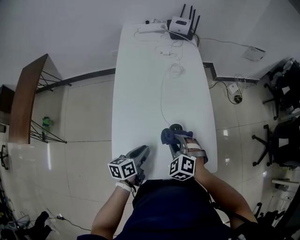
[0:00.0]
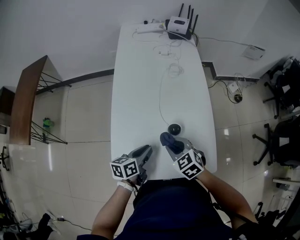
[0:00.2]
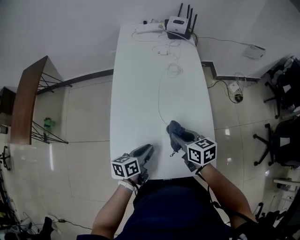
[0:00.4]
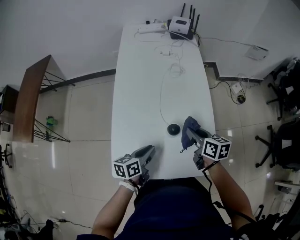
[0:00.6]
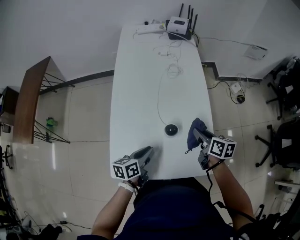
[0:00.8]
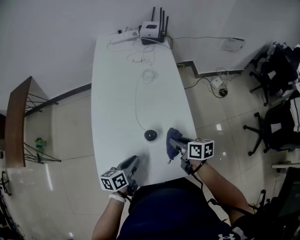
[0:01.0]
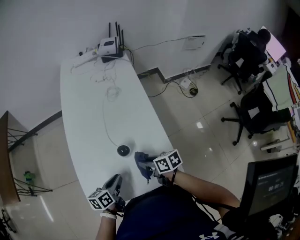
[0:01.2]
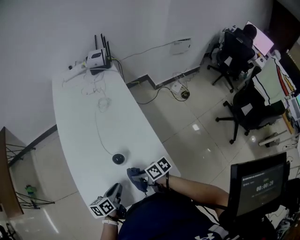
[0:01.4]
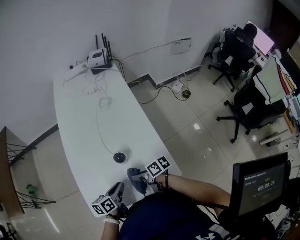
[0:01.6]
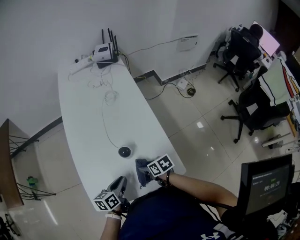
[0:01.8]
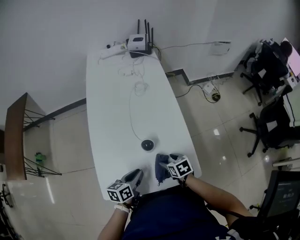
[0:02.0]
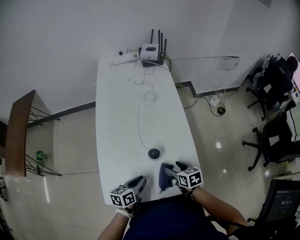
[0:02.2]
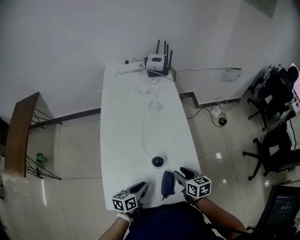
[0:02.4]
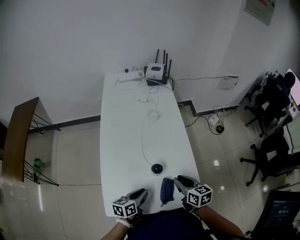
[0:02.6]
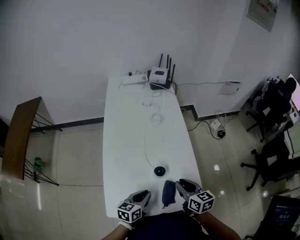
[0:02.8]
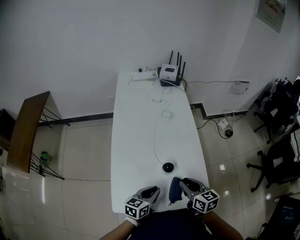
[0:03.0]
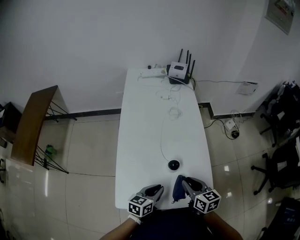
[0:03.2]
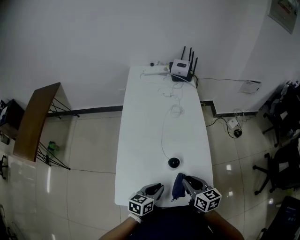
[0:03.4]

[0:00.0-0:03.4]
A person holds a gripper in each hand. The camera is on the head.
0.0 to 1.6 s: The left gripper heads to the right, covering some 5 cm, while the right gripper shifts approximately 10 cm downward and backward, reaches about 15 cm to the right, then returns, and twists roughly 90 degrees clockwise, seen from behind.
1.6 to 3.4 s: The right gripper heads upward, covering roughly 10 cm, rotates about 50 degrees, and opens, then closes again; the left gripper heads upward, covering roughly 5 cm.

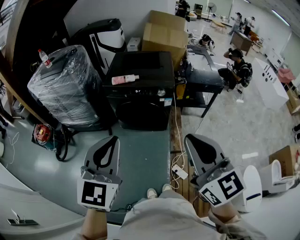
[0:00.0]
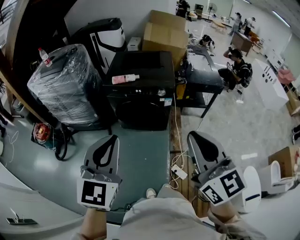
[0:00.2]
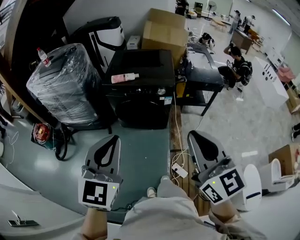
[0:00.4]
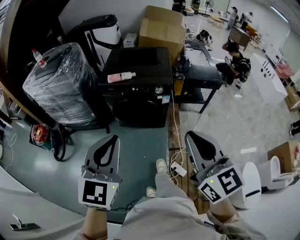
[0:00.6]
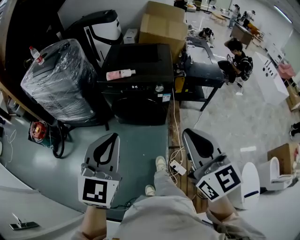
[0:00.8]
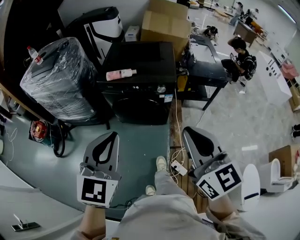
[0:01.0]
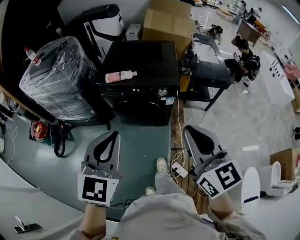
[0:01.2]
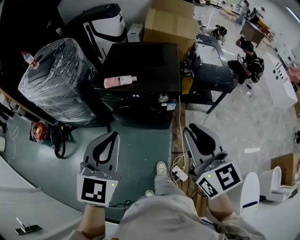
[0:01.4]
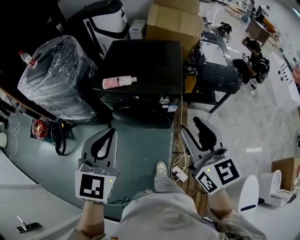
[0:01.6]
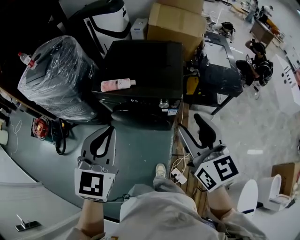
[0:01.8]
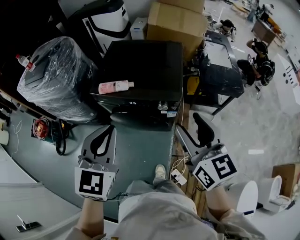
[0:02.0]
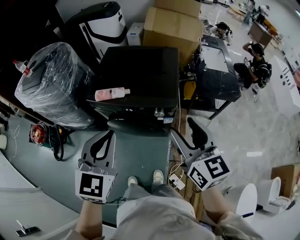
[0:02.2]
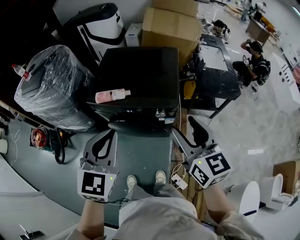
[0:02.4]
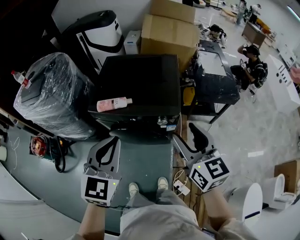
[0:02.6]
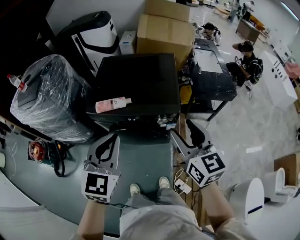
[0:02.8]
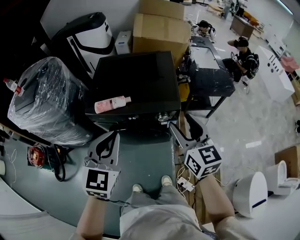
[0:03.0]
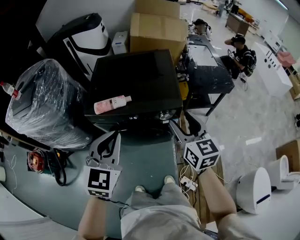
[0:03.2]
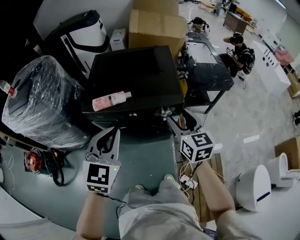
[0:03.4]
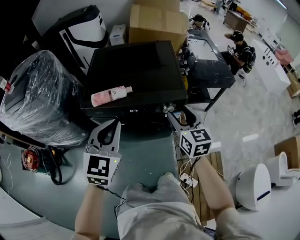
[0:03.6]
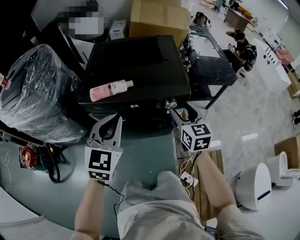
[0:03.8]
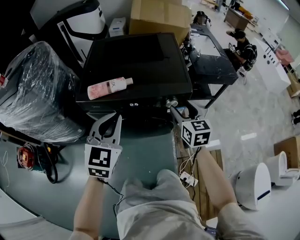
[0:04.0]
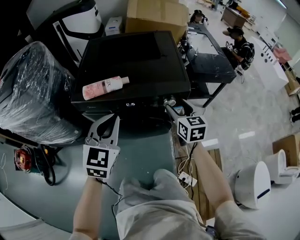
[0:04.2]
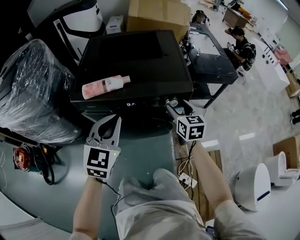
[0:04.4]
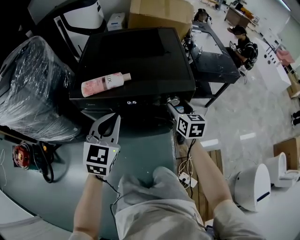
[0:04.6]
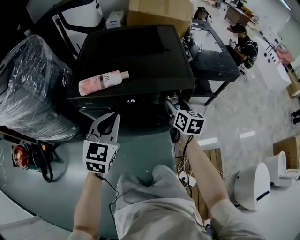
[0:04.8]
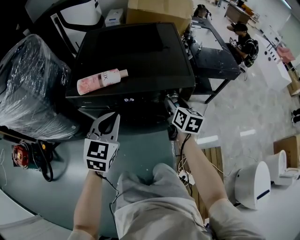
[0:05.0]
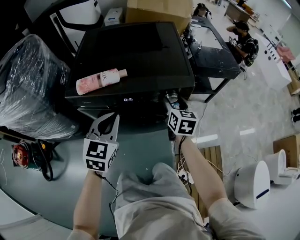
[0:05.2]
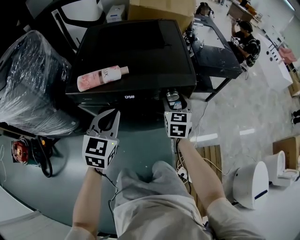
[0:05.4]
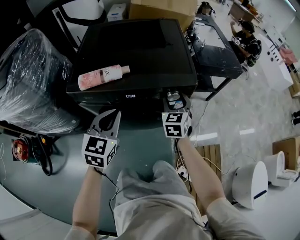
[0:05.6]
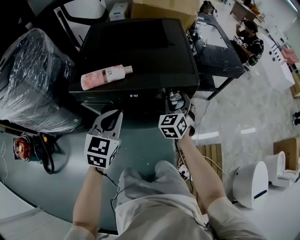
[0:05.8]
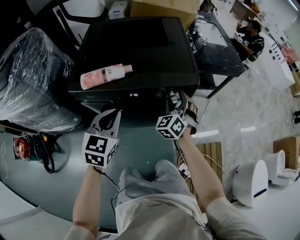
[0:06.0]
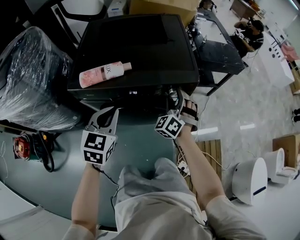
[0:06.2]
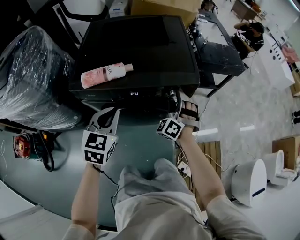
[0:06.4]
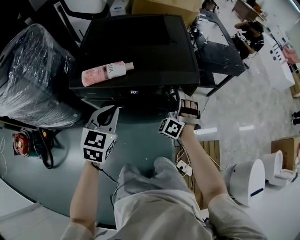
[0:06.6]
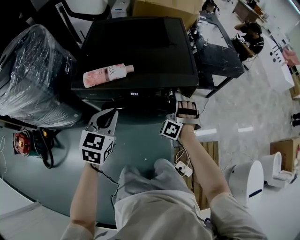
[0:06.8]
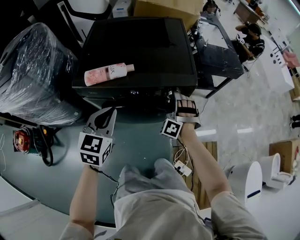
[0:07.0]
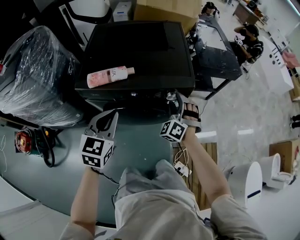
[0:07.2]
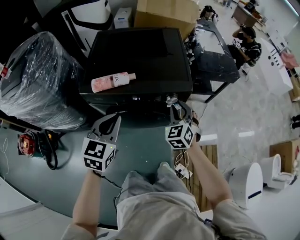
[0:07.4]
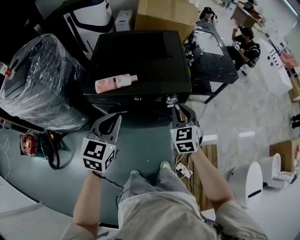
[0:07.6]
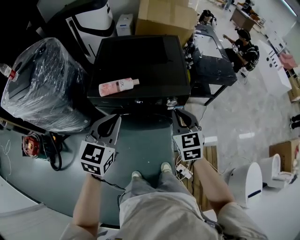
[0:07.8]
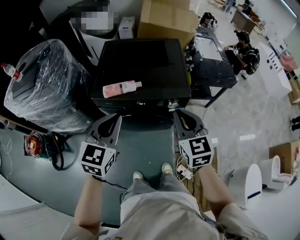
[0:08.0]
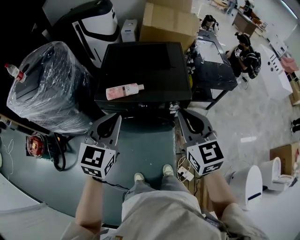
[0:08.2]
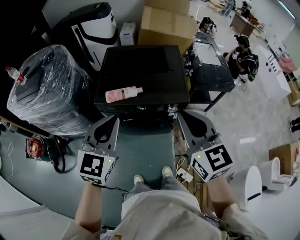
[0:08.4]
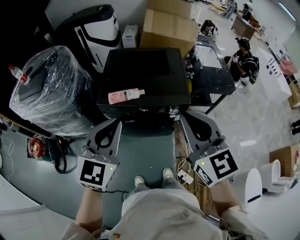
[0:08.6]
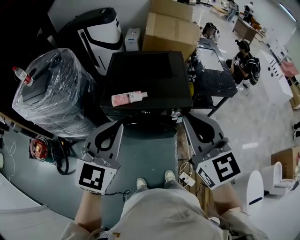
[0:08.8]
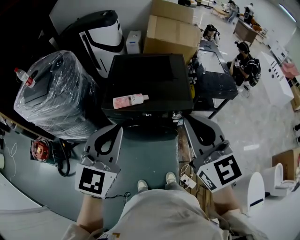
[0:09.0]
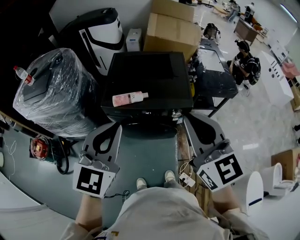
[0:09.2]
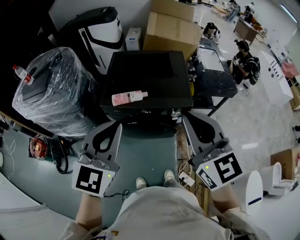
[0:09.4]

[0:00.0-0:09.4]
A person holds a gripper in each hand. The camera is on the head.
0.0 to 1.6 s: Both grippers travel together forward, roughly 25 cm. The right gripper opens.
1.6 to 3.2 s: Both grippers move forward and downward, approximately 20 cm.
3.2 to 4.8 s: The grippers both shift downward and forward by about 25 cm. The right gripper rotates roughly 20 degrees.
4.8 to 6.2 s: The right gripper rotates around the line of its fingers by approximately 80 degrees, counterclockwise from behind.
6.2 to 7.8 s: Both grippers move upward and backward, approximately 20 cm. The right gripper rotates around the line of its fingers by approximately 40 degrees, clockwise from behind, and closes.
7.8 to 9.4 s: The grippers both shift upward by some 20 cm. The right gripper rotates about 20 degrees.

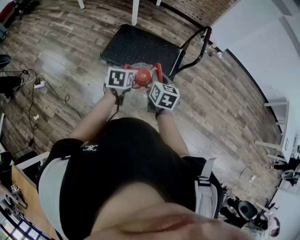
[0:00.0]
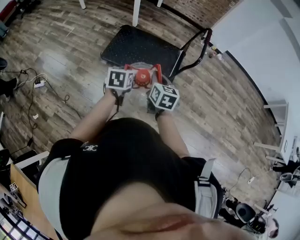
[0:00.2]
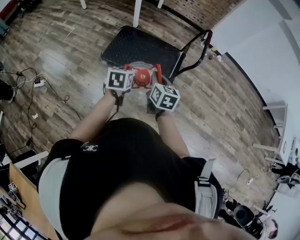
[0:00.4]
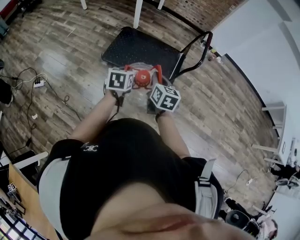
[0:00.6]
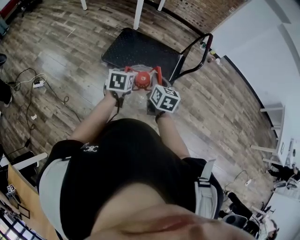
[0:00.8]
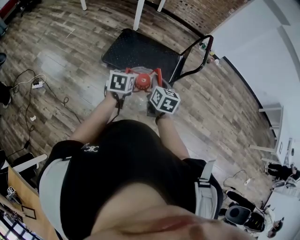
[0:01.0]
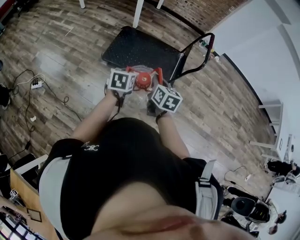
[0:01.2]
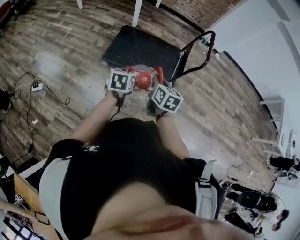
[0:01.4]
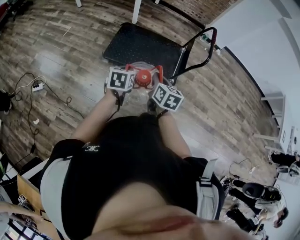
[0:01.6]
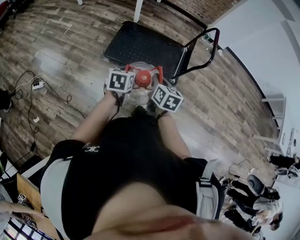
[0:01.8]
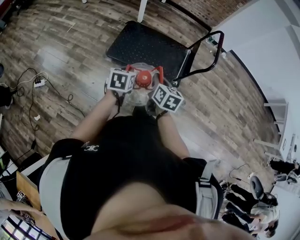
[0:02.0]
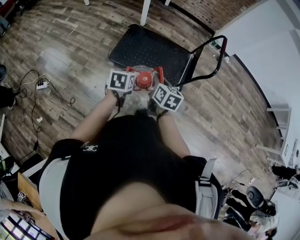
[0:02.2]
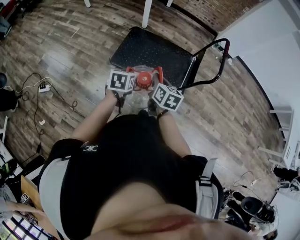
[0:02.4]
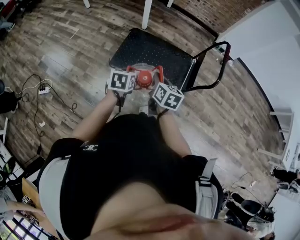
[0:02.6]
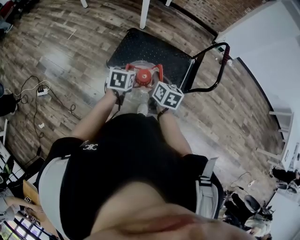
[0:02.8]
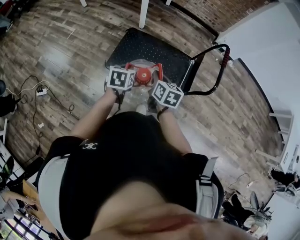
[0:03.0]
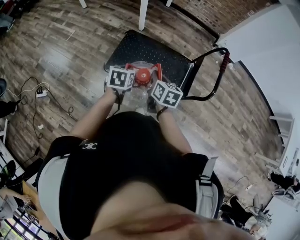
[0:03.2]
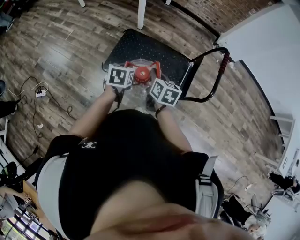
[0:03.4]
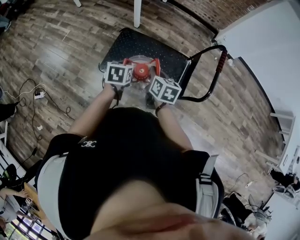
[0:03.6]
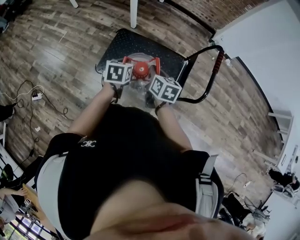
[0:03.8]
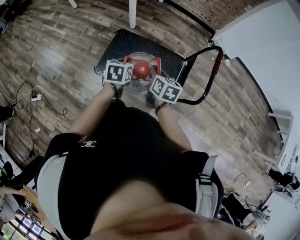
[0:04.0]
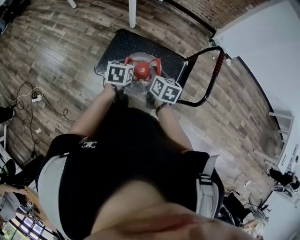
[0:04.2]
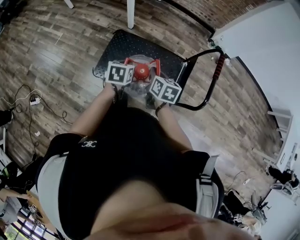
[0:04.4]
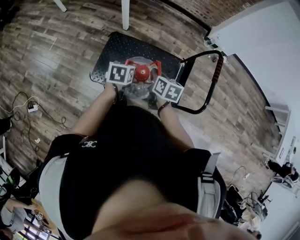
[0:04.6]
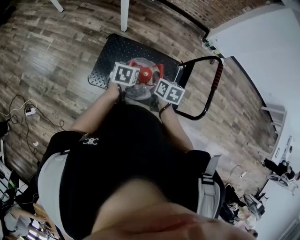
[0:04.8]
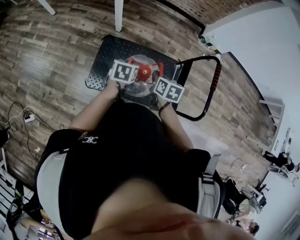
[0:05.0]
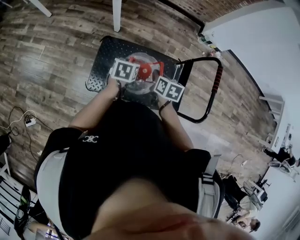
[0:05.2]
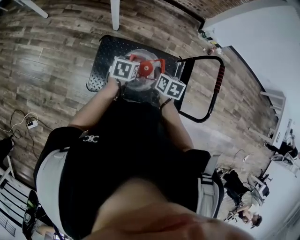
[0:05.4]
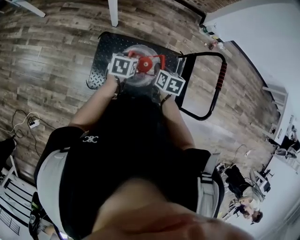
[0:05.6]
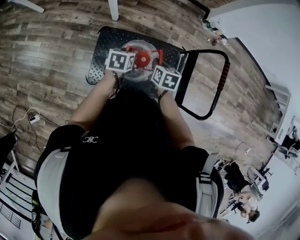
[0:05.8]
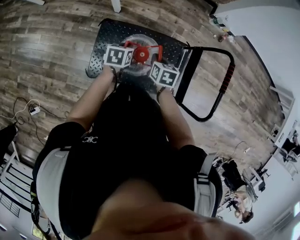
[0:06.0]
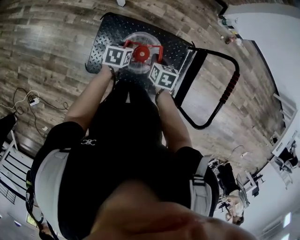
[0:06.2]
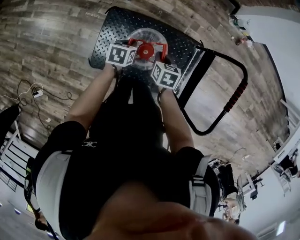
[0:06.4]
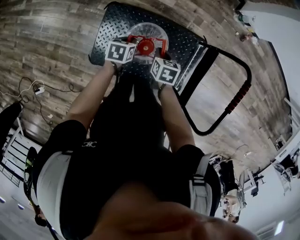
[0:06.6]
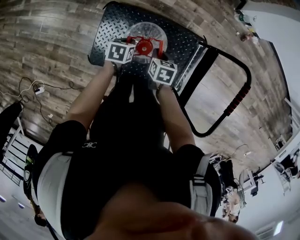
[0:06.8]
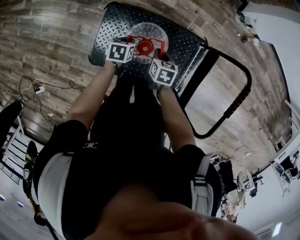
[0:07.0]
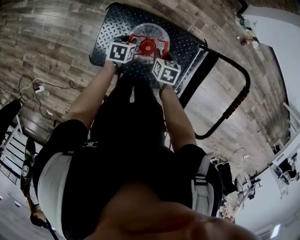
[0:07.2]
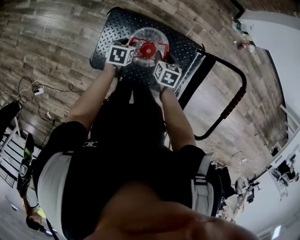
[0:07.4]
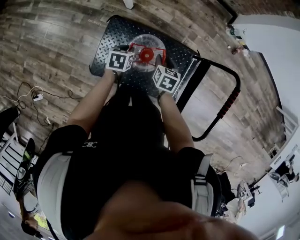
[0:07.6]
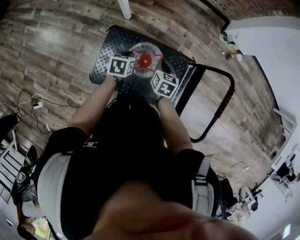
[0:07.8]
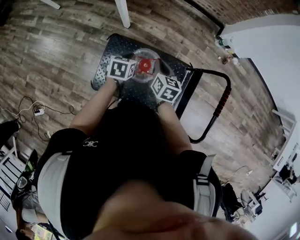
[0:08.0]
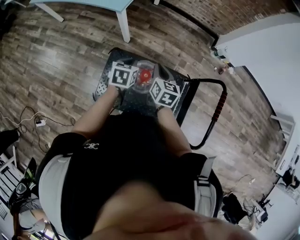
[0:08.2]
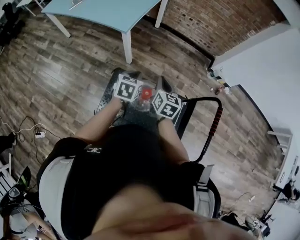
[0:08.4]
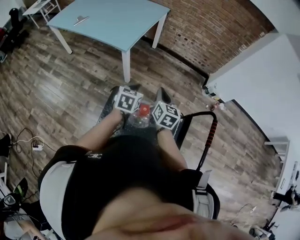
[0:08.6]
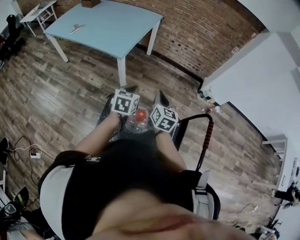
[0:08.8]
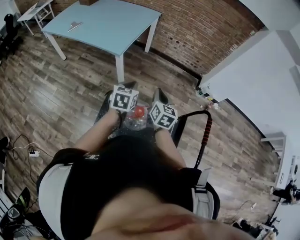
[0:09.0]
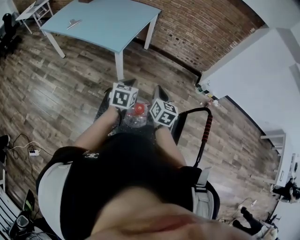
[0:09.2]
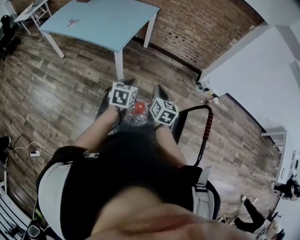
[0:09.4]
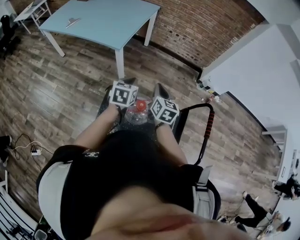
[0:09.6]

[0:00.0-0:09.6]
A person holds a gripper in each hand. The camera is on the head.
0.0 to 1.6 s: The two grippers go approximately 10 cm to the left.
1.6 to 3.2 s: The grippers both shift forward by roughly 25 cm.
3.2 to 4.8 s: Both grippers move forward, approximately 15 cm.
4.8 to 6.4 s: The left gripper goes some 20 cm forward and downward; the right gripper travels downward and forward by about 20 cm.
6.4 to 8.0 s: Both grippers travel together upward, approximately 10 cm. The right gripper turns by about 20 degrees, and opens, then closes once more; the left gripper opens, then closes once more.
8.0 to 9.6 s: The grippers both shift upward by about 15 cm. The left gripper swivels approximately 20 degrees.

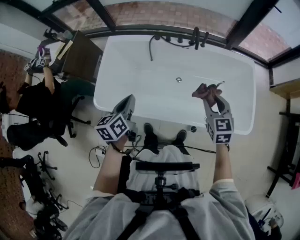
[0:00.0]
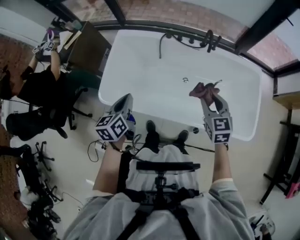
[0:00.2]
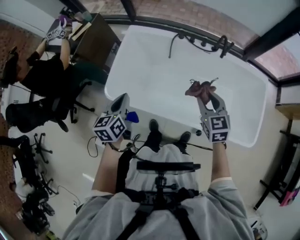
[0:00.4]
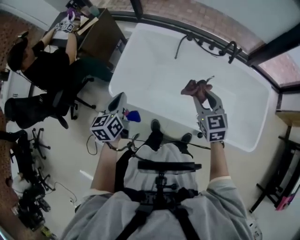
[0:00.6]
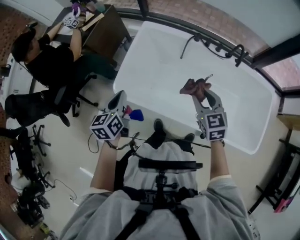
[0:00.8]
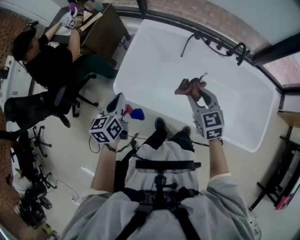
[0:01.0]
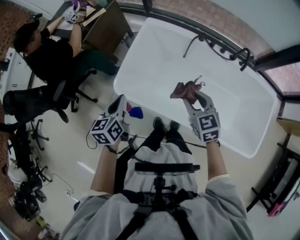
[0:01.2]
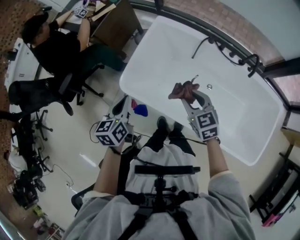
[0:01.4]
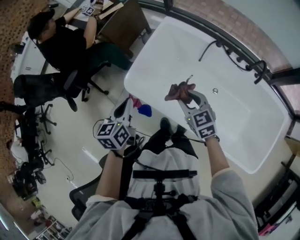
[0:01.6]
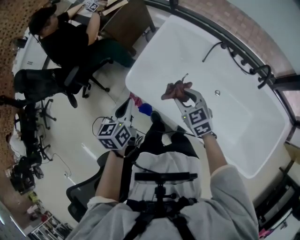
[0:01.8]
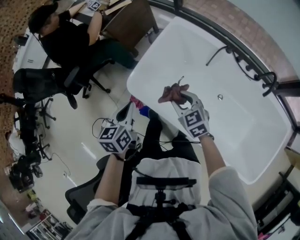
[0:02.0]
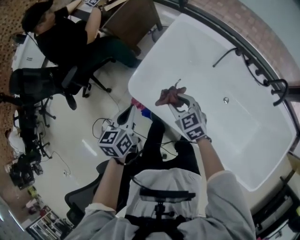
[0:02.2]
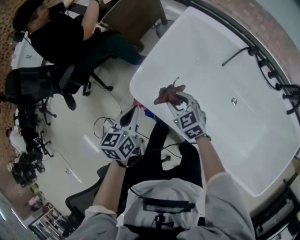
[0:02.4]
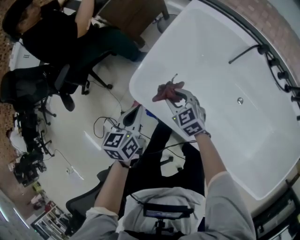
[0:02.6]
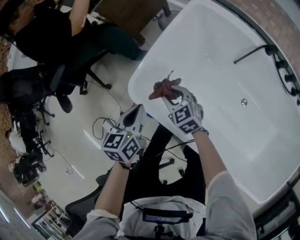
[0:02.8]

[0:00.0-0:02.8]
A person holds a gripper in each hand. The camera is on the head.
0.0 to 1.4 s: The right gripper ends up roughly 35 cm from where it was, and turns by some 30 degrees. The left gripper ends up approximately 25 cm from where it was, and turns by approximately 20 degrees.
1.4 to 2.8 s: The left gripper is displaced downward by roughly 25 cm; the right gripper moves downward, forward and to the left, about 40 cm, and turns by roughly 20 degrees.
